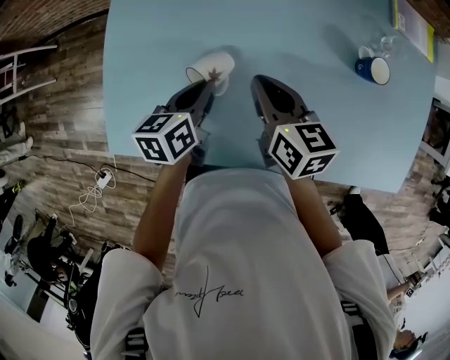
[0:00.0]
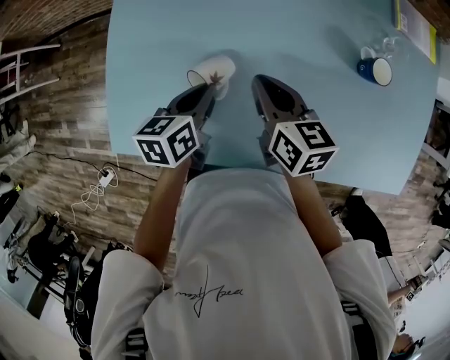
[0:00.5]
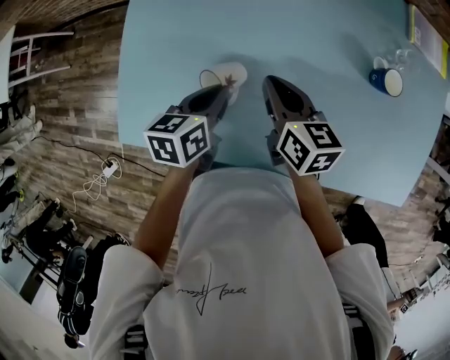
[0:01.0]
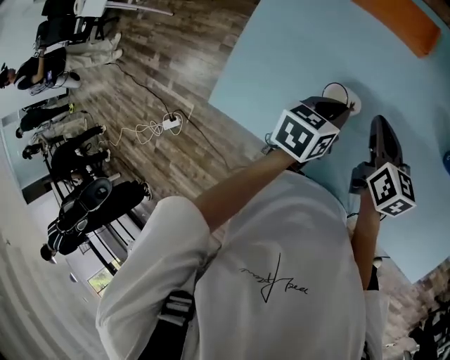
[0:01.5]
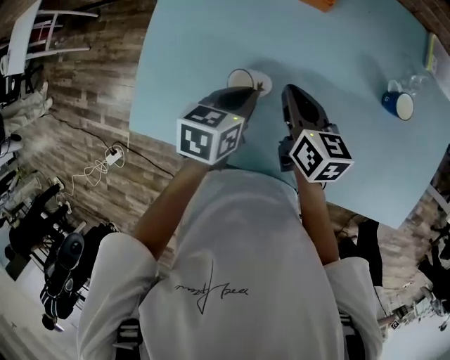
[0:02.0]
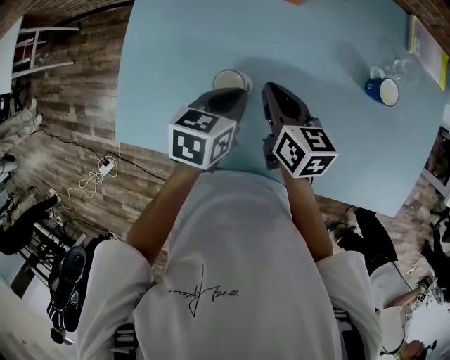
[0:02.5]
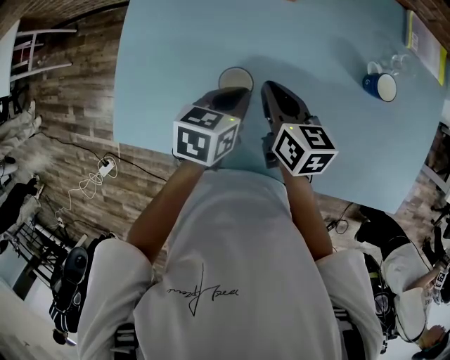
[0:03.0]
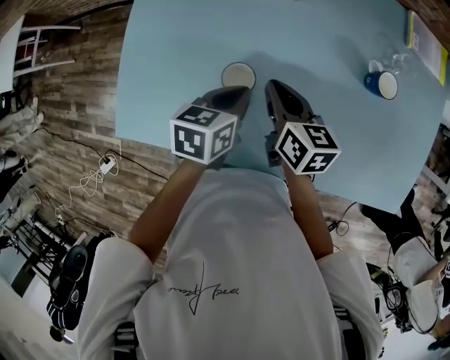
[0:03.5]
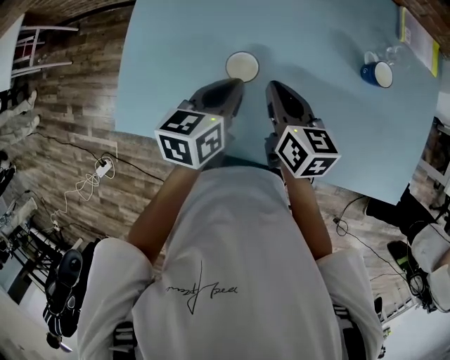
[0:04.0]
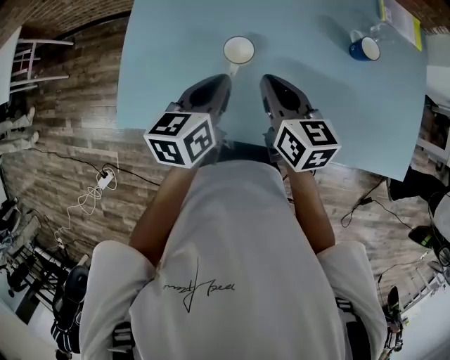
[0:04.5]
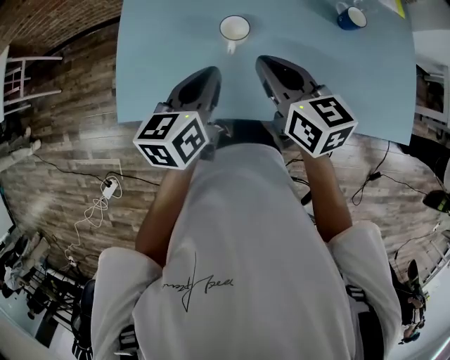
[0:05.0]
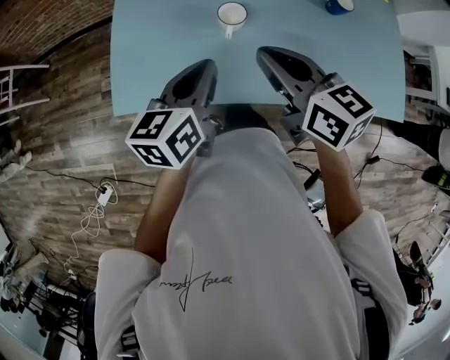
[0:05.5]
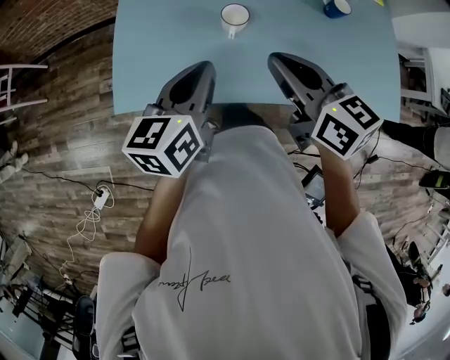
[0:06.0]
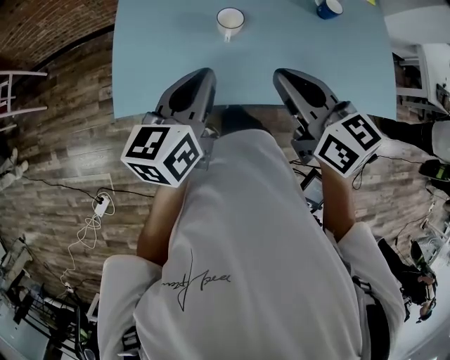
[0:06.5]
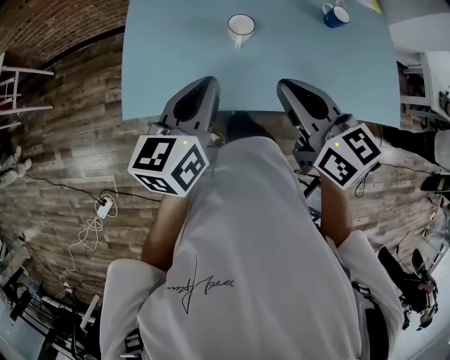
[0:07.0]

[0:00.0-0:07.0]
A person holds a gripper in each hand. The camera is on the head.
0:00.0 to 0:02.0: The grippers make only small movements.
0:02.0 to 0:03.5: The grippers make only small movements.
0:03.5 to 0:05.0: The right gripper is displaced backward and upward by about 15 cm, while the left gripper goes roughly 15 cm backward, upward and to the left, and swivels about 20 degrees.
0:05.0 to 0:07.0: Both grippers travel together backward and upward, roughly 10 cm.

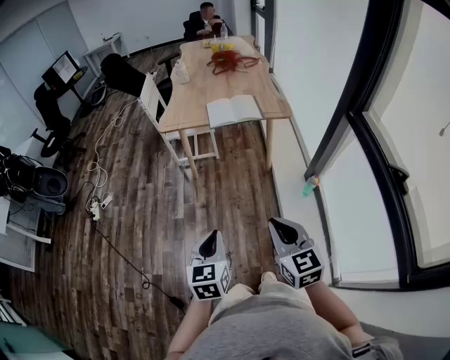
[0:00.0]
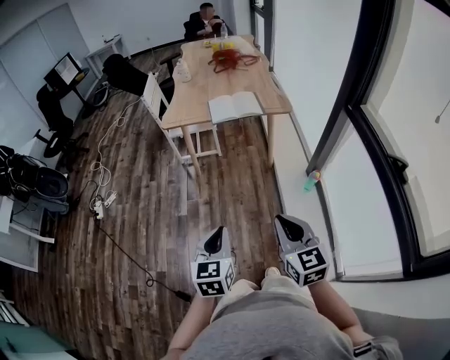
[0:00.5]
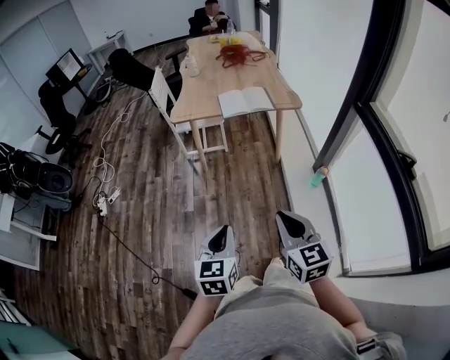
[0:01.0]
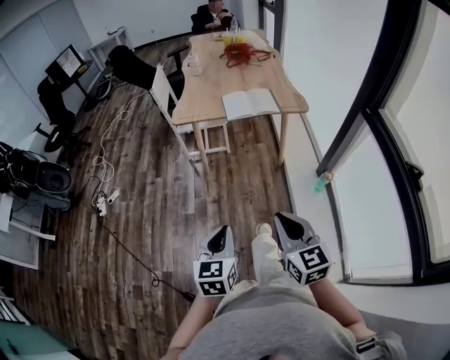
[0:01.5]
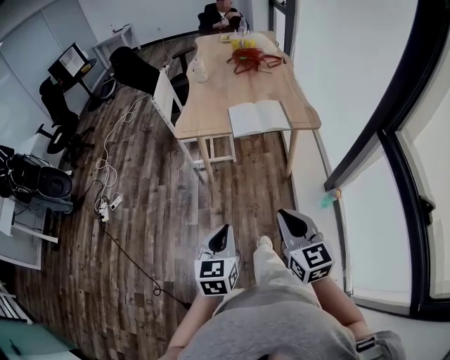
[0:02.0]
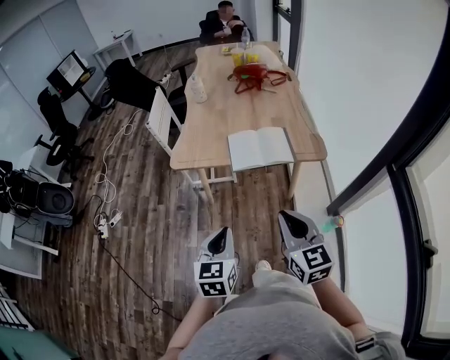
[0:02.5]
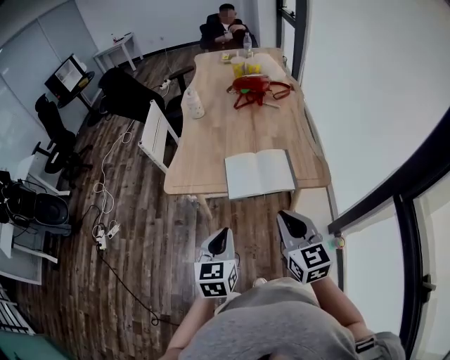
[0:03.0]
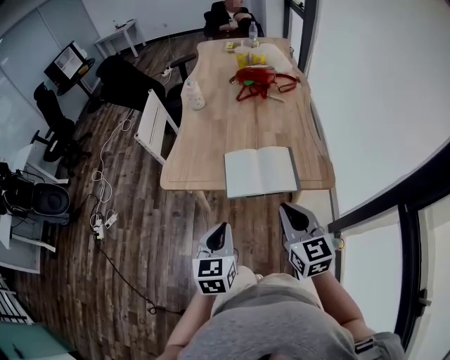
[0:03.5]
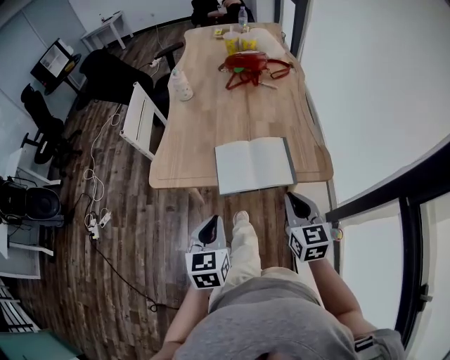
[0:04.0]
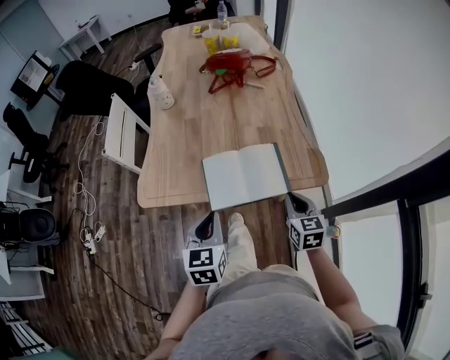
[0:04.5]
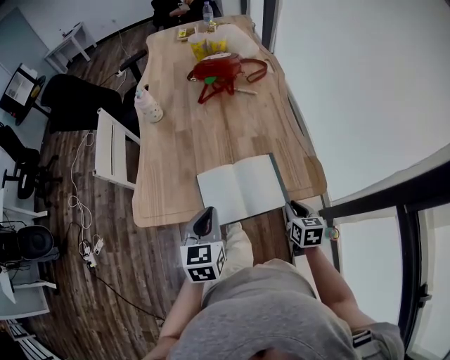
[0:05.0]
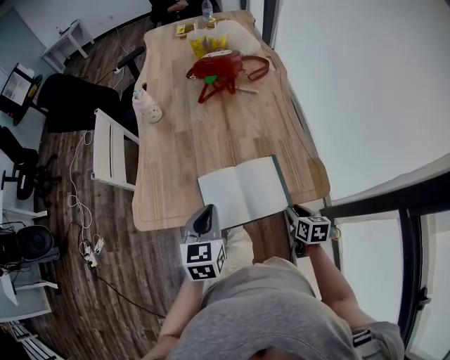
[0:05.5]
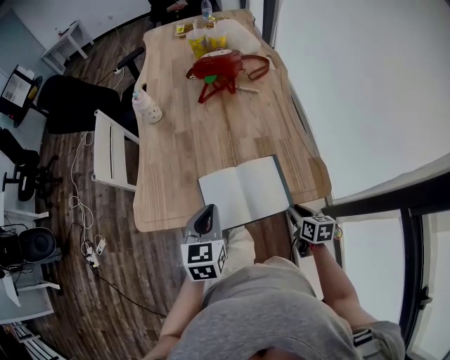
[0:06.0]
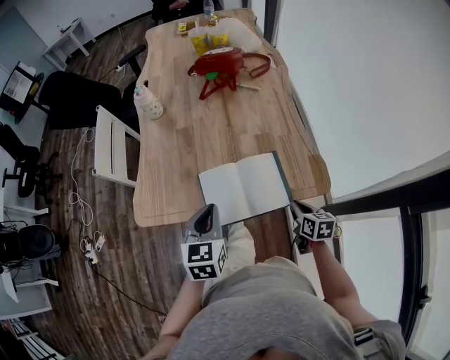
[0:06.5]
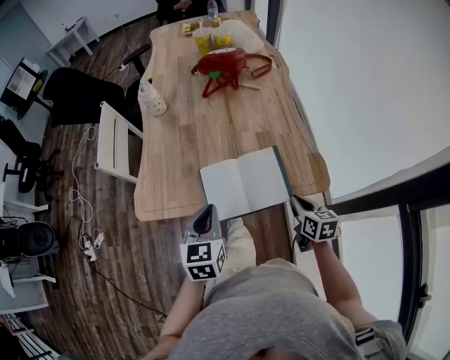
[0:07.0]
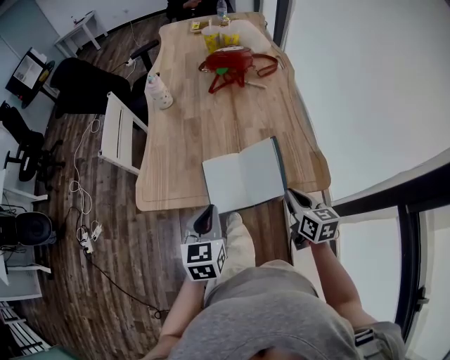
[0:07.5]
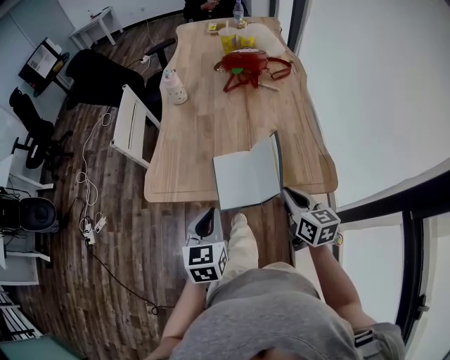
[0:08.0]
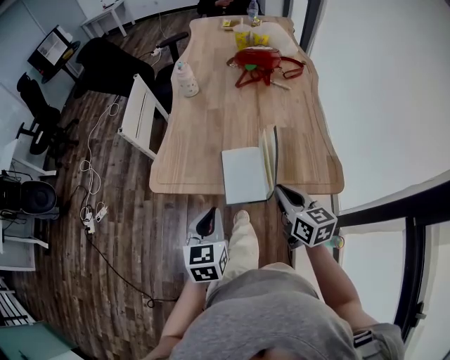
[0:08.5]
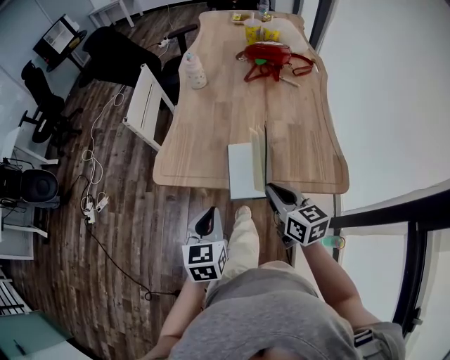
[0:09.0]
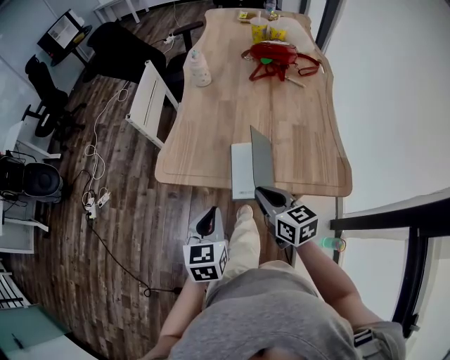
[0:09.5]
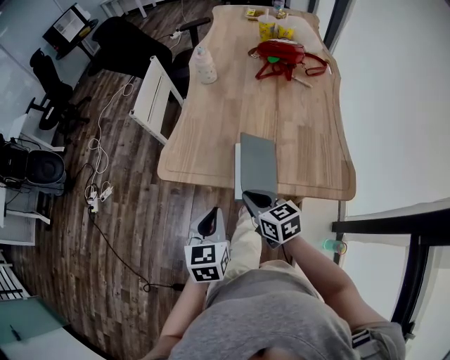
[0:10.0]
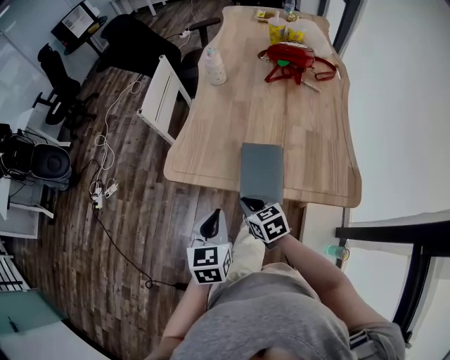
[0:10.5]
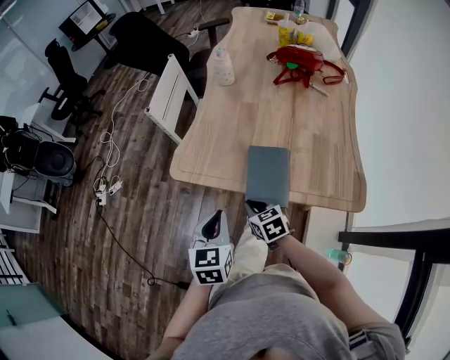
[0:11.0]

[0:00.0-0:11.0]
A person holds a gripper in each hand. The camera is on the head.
0:00.0 to 0:02.0: The two grippers go approximately 15 cm forward.
0:02.0 to 0:03.5: Both grippers travel together forward, roughly 35 cm.
0:03.5 to 0:05.5: The right gripper goes roughly 35 cm downward, forward and to the right, angles its fingers downward, by roughly 30 degrees, and opens its fingers; the left gripper shifts roughly 20 cm forward.
0:05.5 to 0:07.5: The left gripper is displaced backward by roughly 5 cm. The right gripper goes approximately 10 cm upward, changes its angle by some 20 degrees, and closes up.
0:07.5 to 0:09.0: The left gripper travels to the left by roughly 5 cm; the right gripper goes about 15 cm to the left, and swivels approximately 20 degrees.
0:09.0 to 0:11.0: The right gripper goes roughly 20 cm downward and to the left, and rotates approximately 30 degrees.

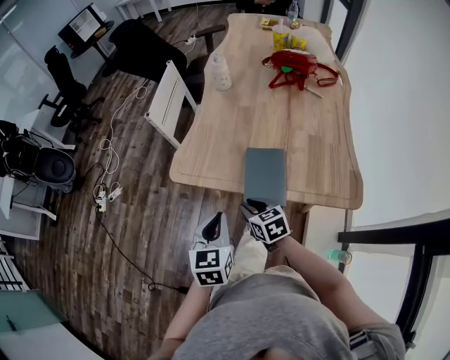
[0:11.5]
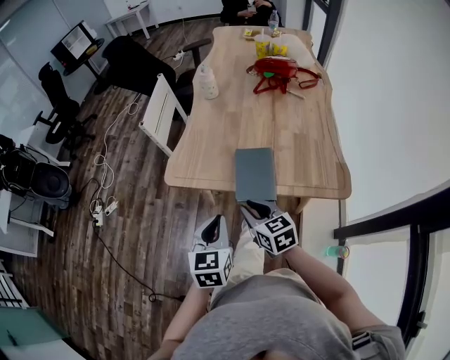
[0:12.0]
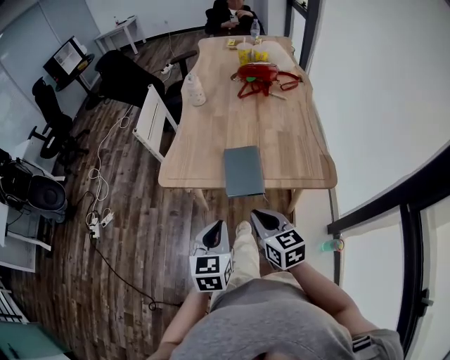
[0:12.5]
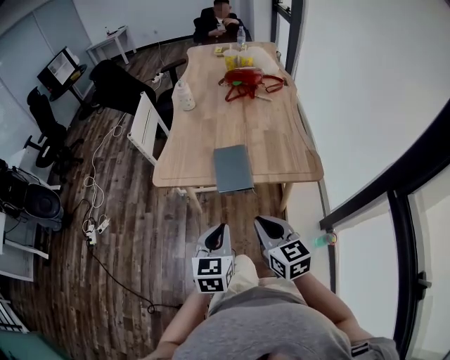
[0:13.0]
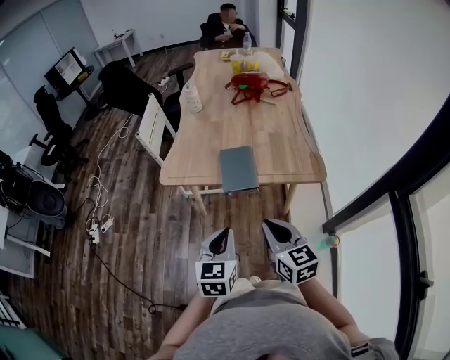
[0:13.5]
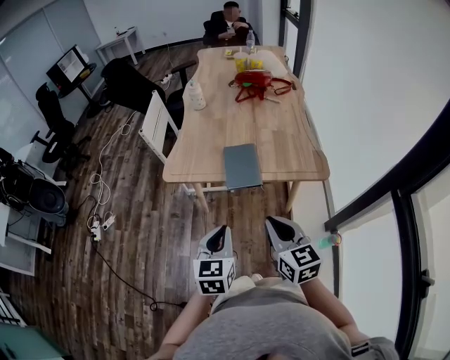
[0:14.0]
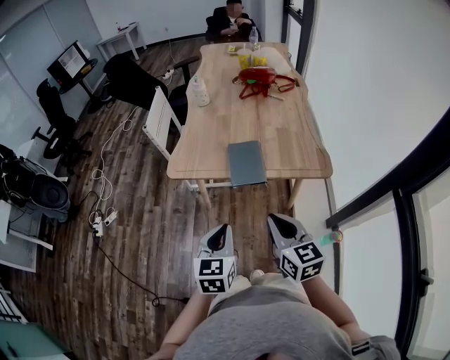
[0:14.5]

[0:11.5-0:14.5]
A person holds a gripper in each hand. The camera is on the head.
0:11.5 to 0:13.0: The right gripper shifts roughly 25 cm backward and upward, rotates about 30 degrees, and closes its fingers, while the left gripper shifts approximately 15 cm backward.
0:13.0 to 0:14.5: The left gripper changes place by roughly 5 cm.

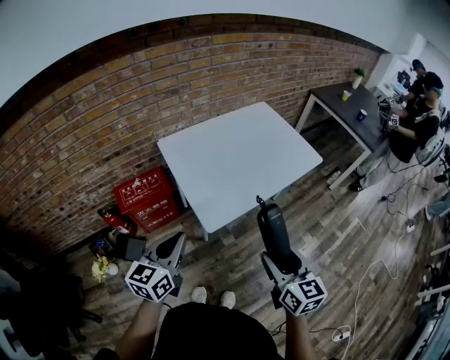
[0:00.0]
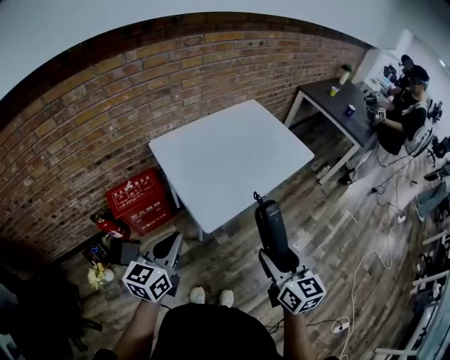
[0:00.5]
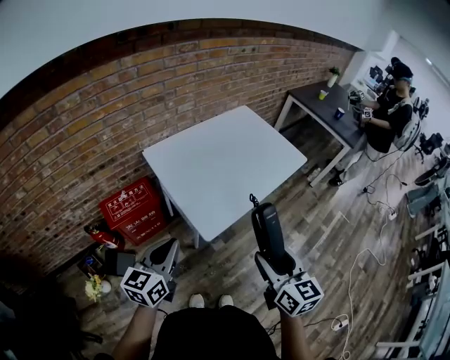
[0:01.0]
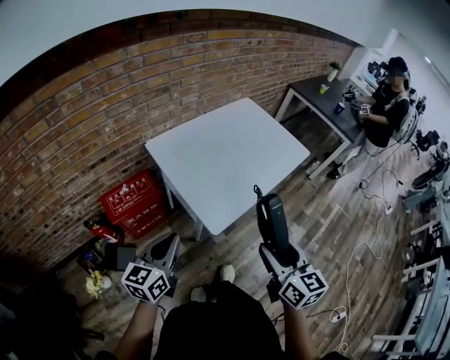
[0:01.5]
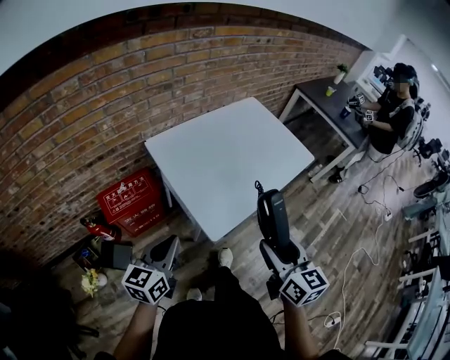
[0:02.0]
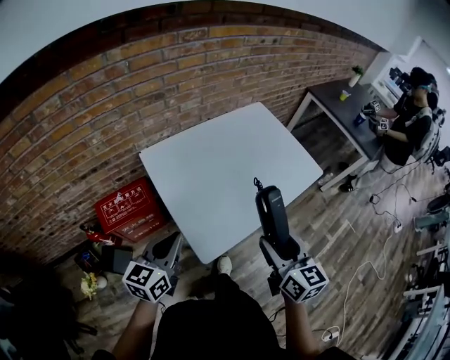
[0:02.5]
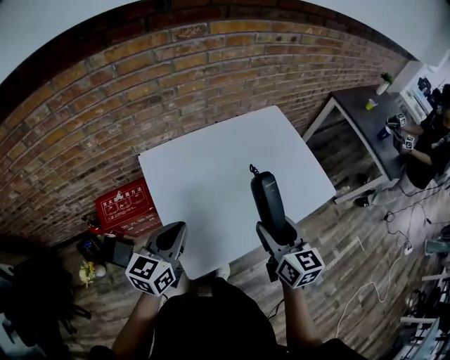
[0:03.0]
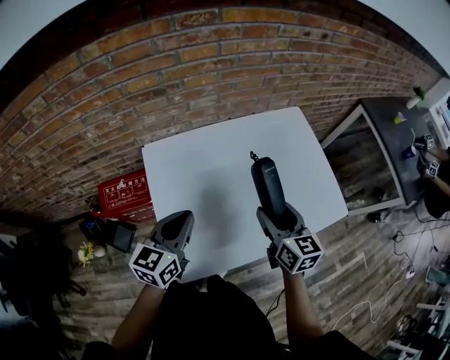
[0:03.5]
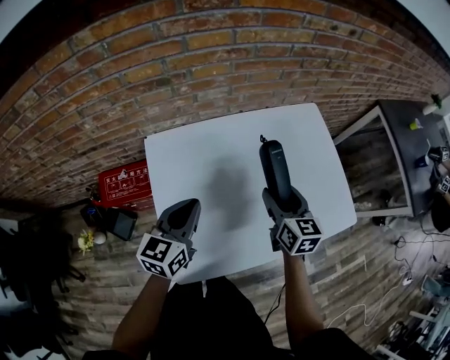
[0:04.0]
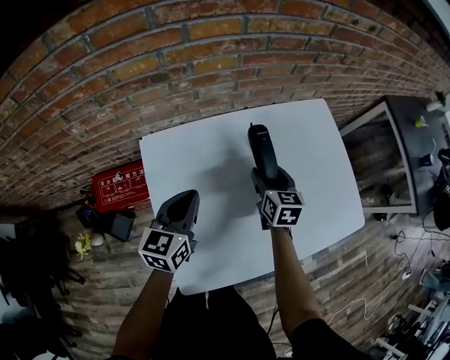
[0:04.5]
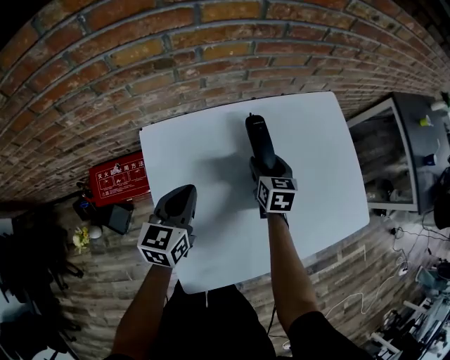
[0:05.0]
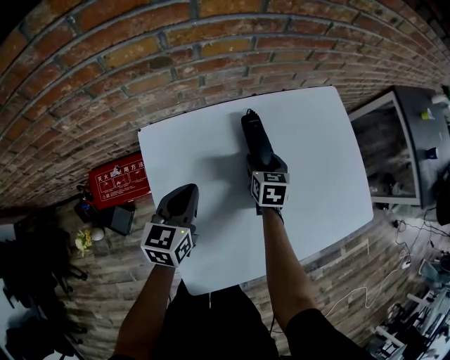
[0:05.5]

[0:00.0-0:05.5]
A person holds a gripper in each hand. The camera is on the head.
0:00.0 to 0:02.0: The right gripper moves to the left and forward, about 10 cm. The left gripper goes about 10 cm to the left.
0:02.0 to 0:03.5: The right gripper shifts approximately 35 cm forward, and changes its angle by roughly 20 degrees, while the left gripper travels forward and to the right by roughly 30 cm.
0:03.5 to 0:05.5: The left gripper travels downward, forward and to the left by roughly 20 cm. Meanwhile the right gripper travels downward, forward and to the left by about 30 cm, and turns by some 30 degrees.
